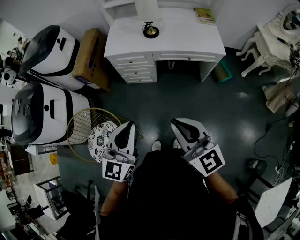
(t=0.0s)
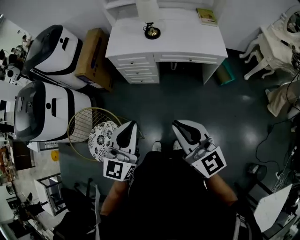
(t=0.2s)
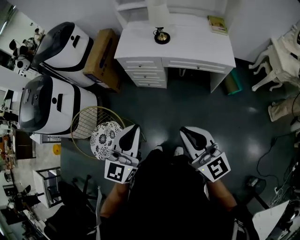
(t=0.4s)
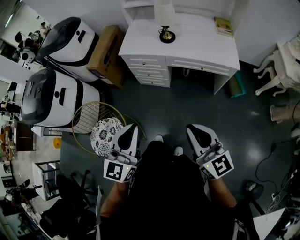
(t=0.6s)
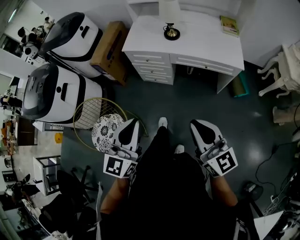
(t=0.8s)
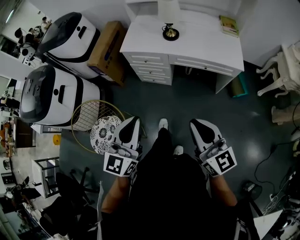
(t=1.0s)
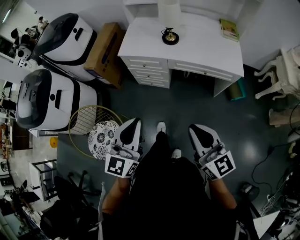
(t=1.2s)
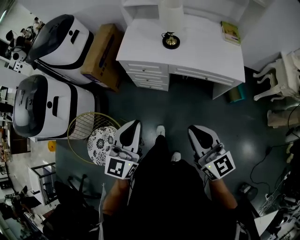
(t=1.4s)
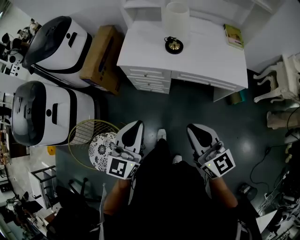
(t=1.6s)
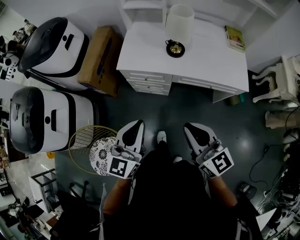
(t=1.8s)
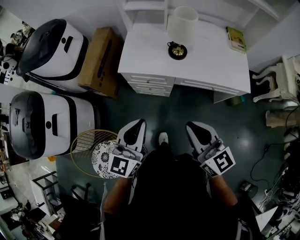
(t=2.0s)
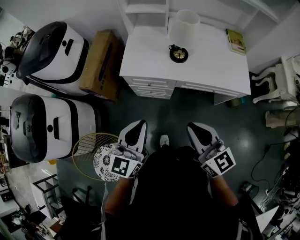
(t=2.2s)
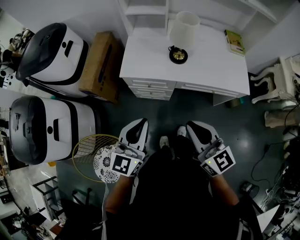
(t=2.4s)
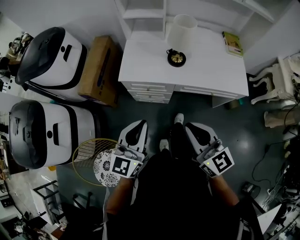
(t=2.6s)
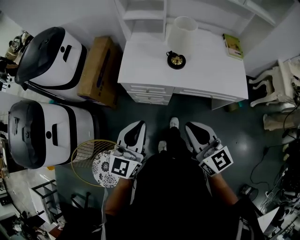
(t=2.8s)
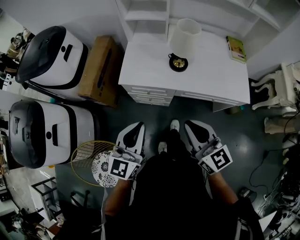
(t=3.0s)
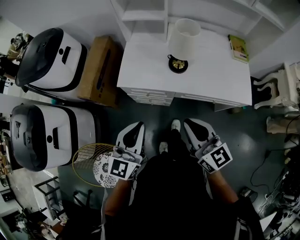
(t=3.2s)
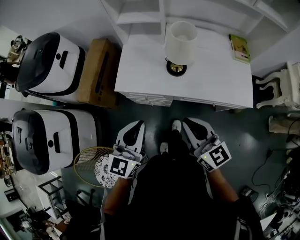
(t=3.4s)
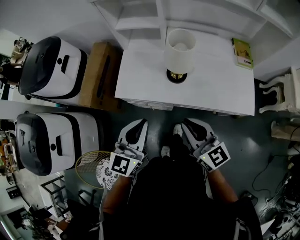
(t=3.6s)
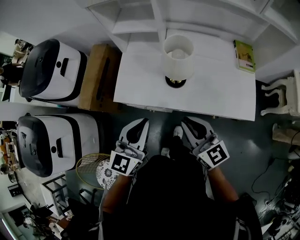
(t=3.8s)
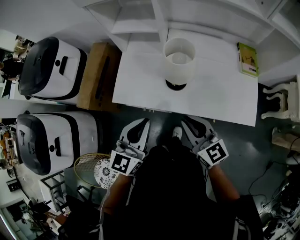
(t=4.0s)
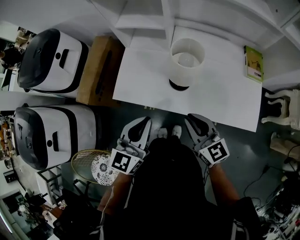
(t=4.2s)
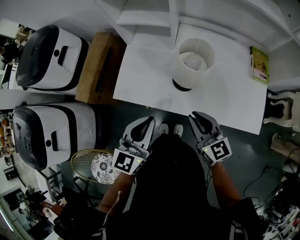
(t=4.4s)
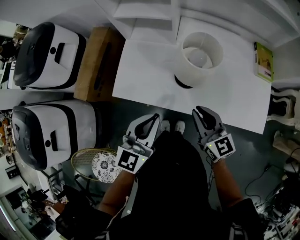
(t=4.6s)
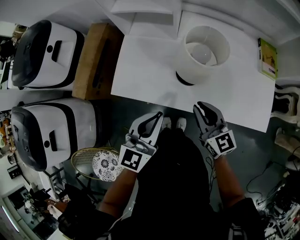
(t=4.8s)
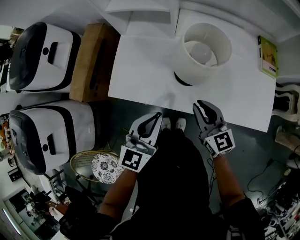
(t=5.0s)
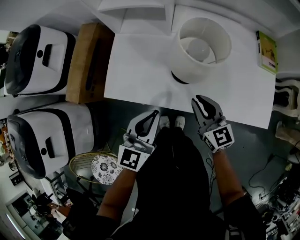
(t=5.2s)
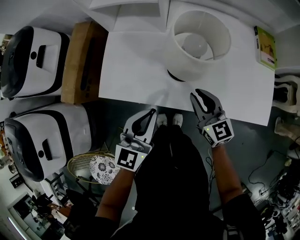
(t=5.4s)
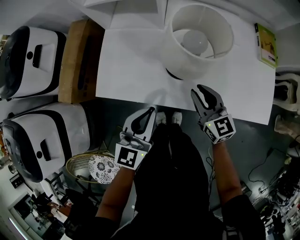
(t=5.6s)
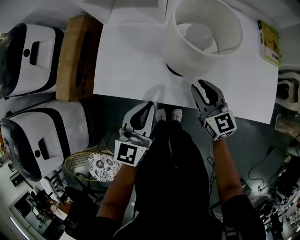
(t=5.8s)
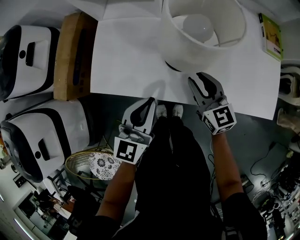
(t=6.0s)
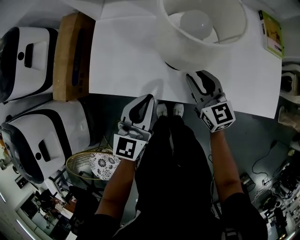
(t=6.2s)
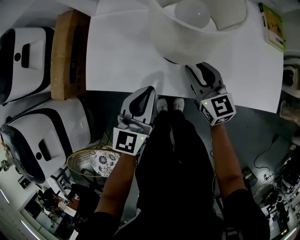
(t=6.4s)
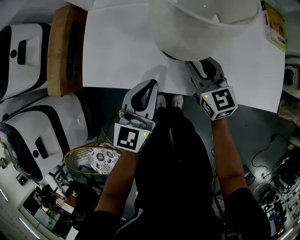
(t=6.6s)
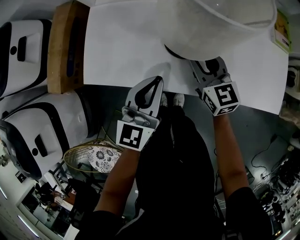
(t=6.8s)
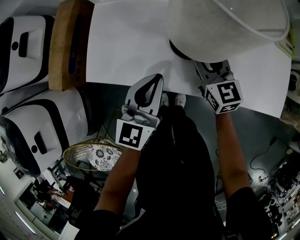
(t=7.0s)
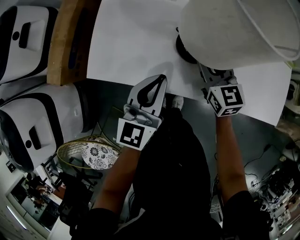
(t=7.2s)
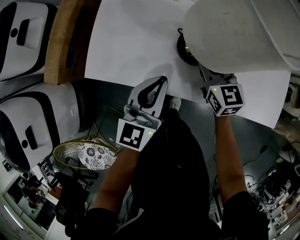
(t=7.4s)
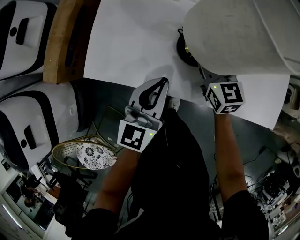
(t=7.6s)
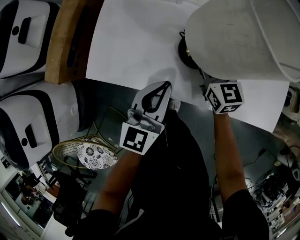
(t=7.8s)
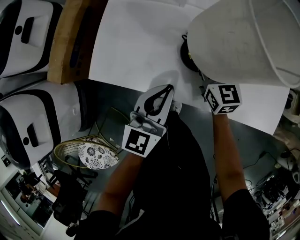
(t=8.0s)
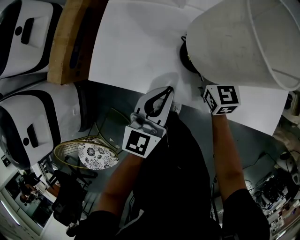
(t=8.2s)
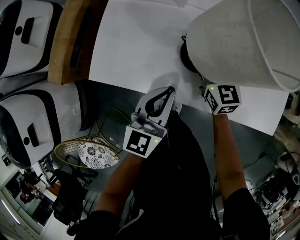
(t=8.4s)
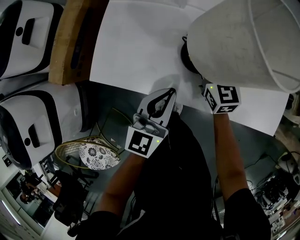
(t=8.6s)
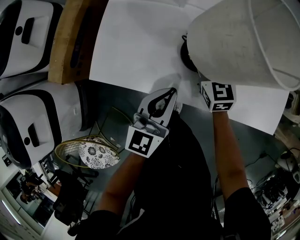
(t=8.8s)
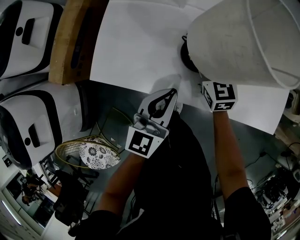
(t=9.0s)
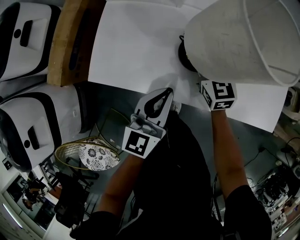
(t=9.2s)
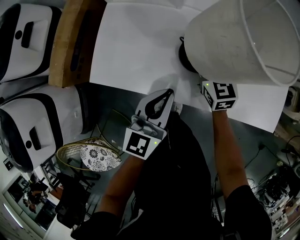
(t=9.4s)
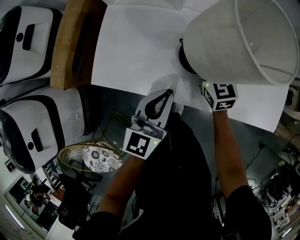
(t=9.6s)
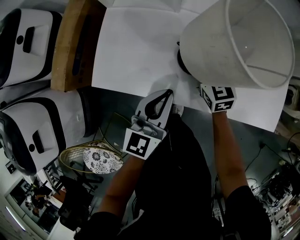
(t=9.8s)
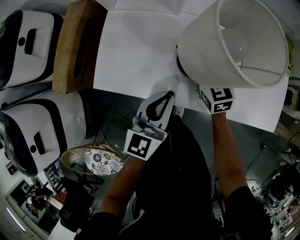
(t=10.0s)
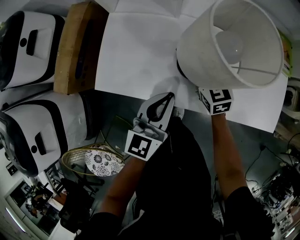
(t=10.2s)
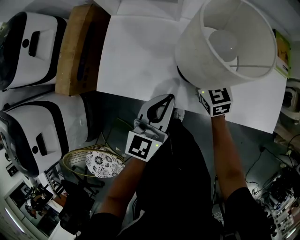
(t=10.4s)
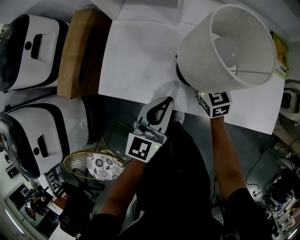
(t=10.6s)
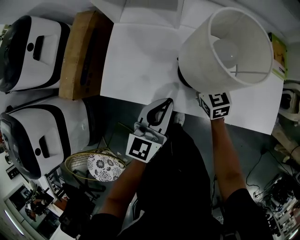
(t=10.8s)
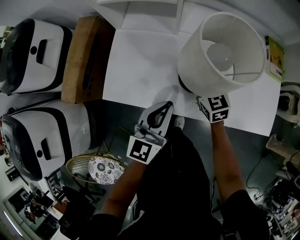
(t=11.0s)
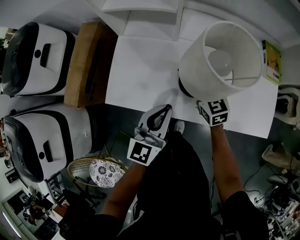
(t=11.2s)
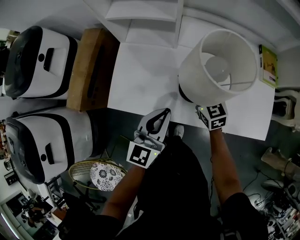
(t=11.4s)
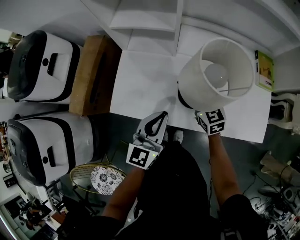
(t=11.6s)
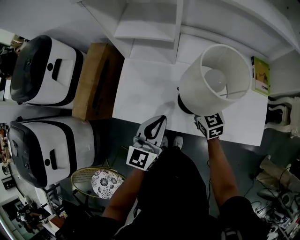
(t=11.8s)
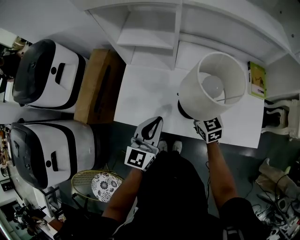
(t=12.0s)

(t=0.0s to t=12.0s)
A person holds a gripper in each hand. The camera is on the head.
t=0.0s - t=1.6s: Both grippers travel together forward, roughly 20 cm.
t=1.6s - t=3.0s: Both grippers move forward, roughly 15 cm.
t=3.0s - t=4.4s: The right gripper goes approximately 25 cm forward and downward; the left gripper is displaced forward and to the right by about 20 cm.
t=4.4s - t=6.0s: The left gripper moves downward, about 15 cm, while the right gripper goes about 15 cm downward and forward.
t=6.0s - t=7.6s: The left gripper ends up about 5 cm from where it was, while the right gripper travels forward by some 10 cm.
t=7.6s - t=10.4s: The grippers stay close to where they were, moving slightly.
t=10.4s - t=12.0s: The two grippers go approximately 10 cm upward.

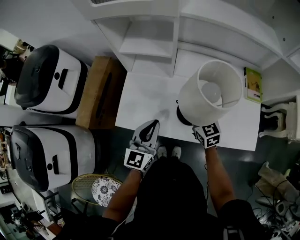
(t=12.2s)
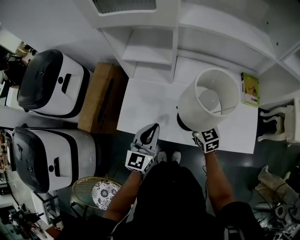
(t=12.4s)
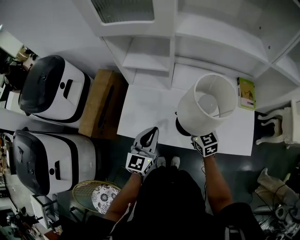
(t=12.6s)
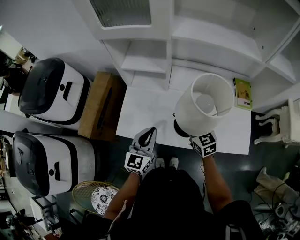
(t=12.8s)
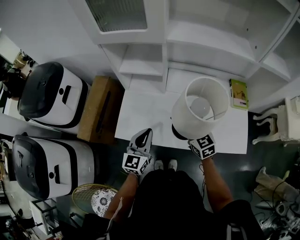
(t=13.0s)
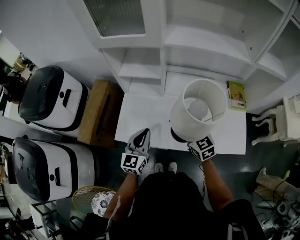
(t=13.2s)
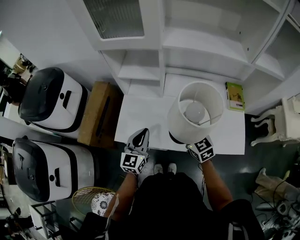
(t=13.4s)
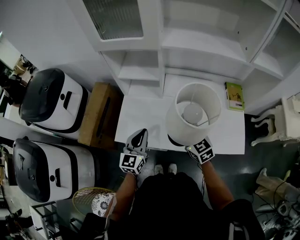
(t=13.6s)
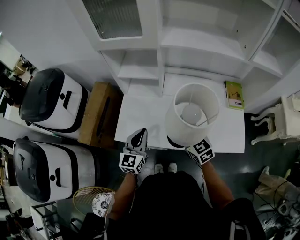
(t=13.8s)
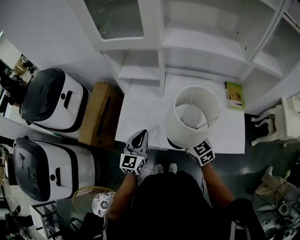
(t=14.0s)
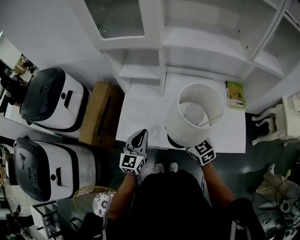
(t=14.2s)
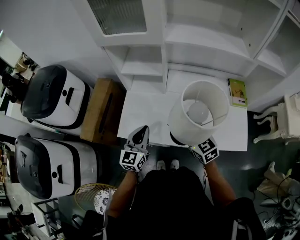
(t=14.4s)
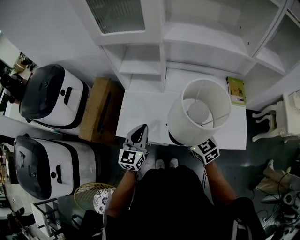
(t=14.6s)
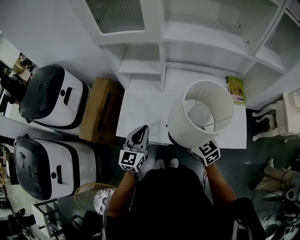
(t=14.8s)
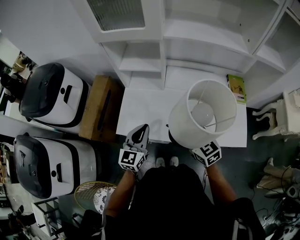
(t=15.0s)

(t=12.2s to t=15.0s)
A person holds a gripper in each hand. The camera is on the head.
t=12.2s - t=13.6s: The right gripper goes roughly 10 cm upward and backward.
t=13.6s - t=15.0s: The right gripper moves about 5 cm.

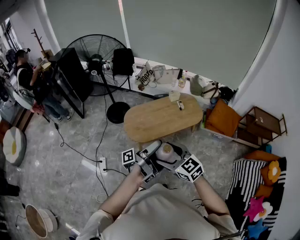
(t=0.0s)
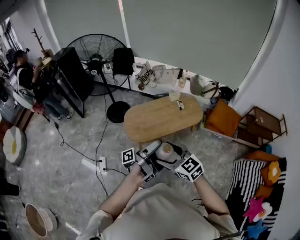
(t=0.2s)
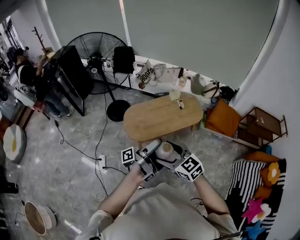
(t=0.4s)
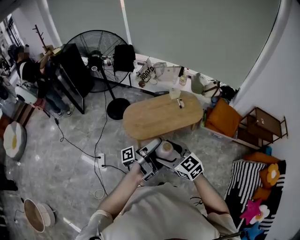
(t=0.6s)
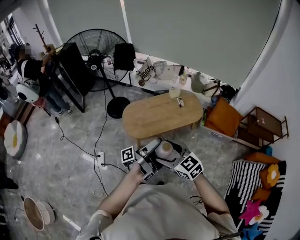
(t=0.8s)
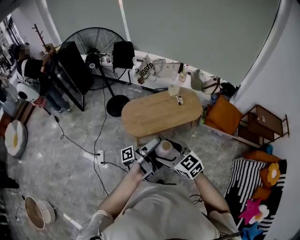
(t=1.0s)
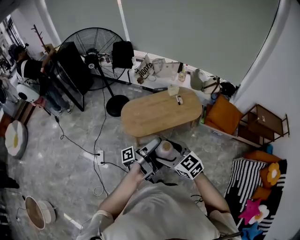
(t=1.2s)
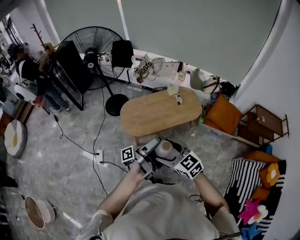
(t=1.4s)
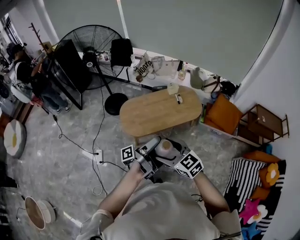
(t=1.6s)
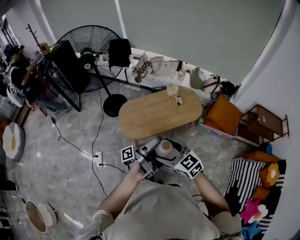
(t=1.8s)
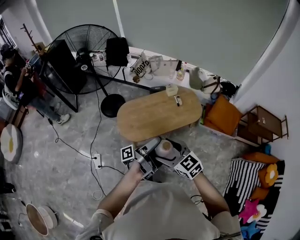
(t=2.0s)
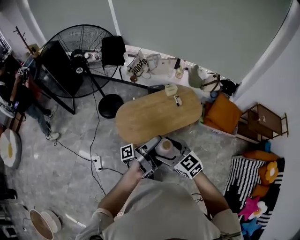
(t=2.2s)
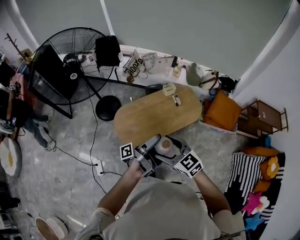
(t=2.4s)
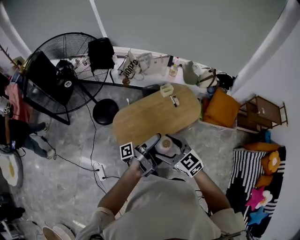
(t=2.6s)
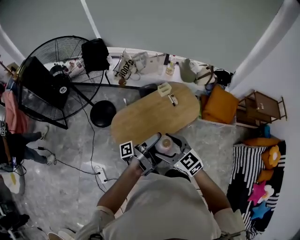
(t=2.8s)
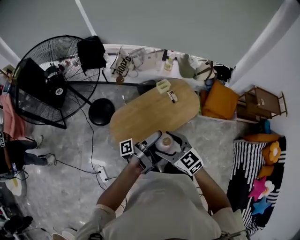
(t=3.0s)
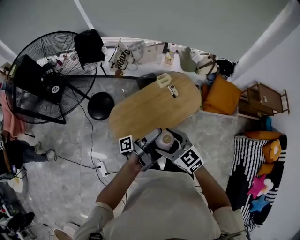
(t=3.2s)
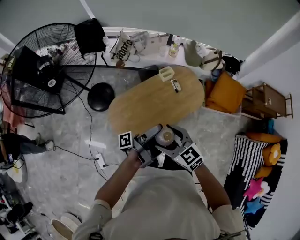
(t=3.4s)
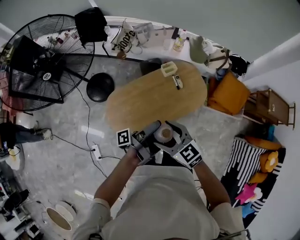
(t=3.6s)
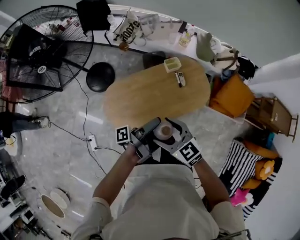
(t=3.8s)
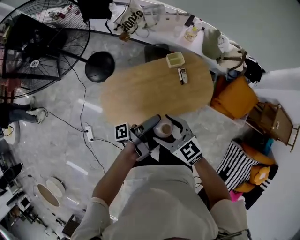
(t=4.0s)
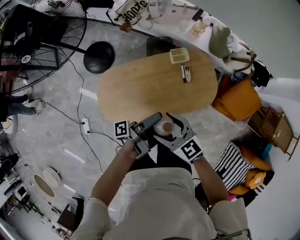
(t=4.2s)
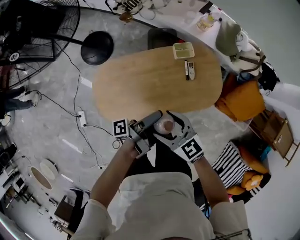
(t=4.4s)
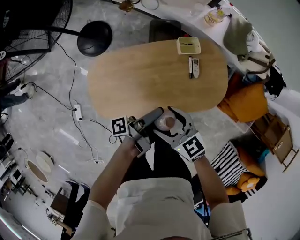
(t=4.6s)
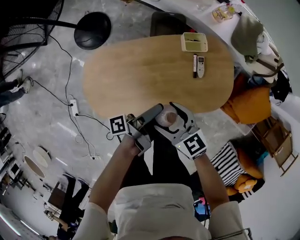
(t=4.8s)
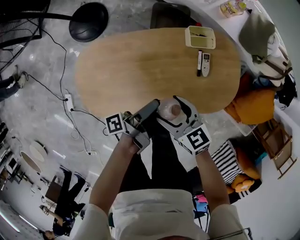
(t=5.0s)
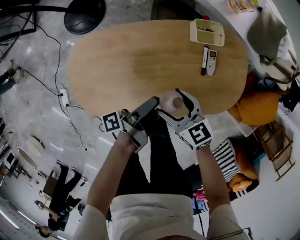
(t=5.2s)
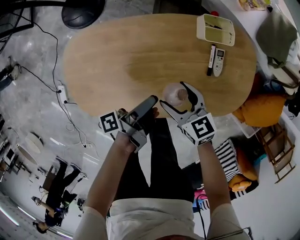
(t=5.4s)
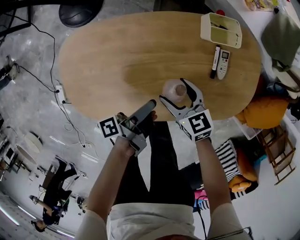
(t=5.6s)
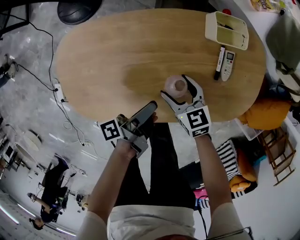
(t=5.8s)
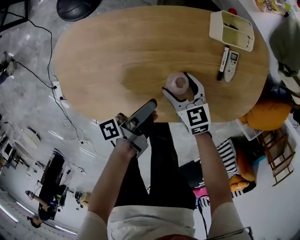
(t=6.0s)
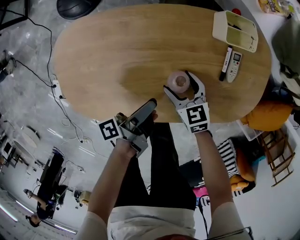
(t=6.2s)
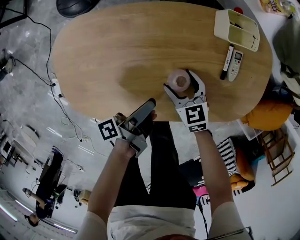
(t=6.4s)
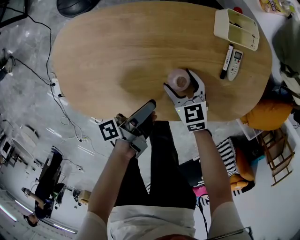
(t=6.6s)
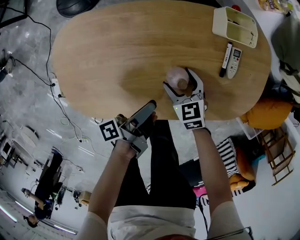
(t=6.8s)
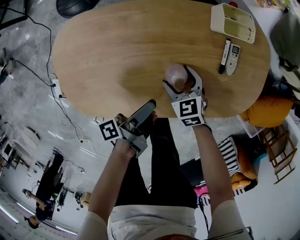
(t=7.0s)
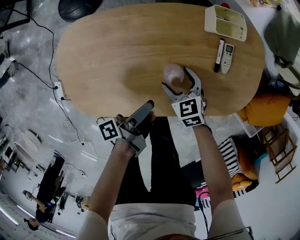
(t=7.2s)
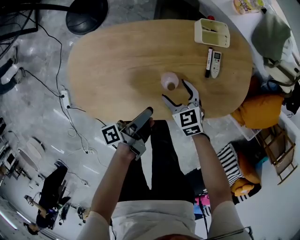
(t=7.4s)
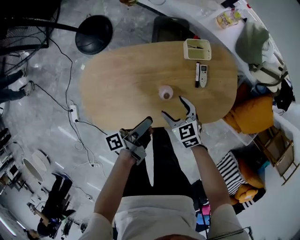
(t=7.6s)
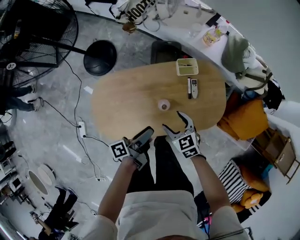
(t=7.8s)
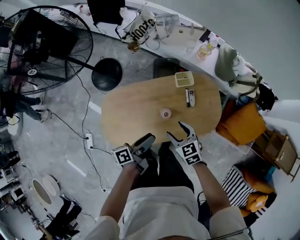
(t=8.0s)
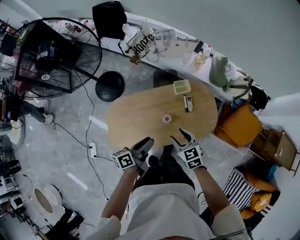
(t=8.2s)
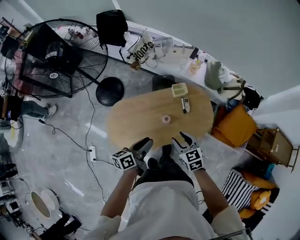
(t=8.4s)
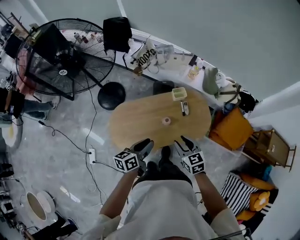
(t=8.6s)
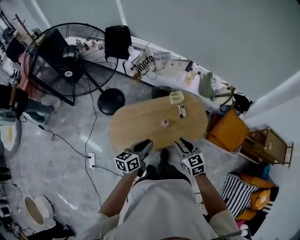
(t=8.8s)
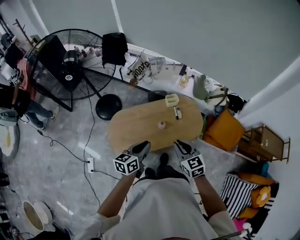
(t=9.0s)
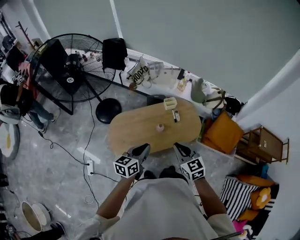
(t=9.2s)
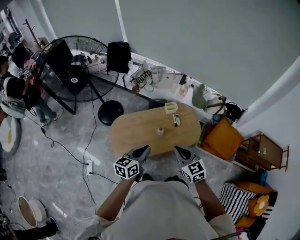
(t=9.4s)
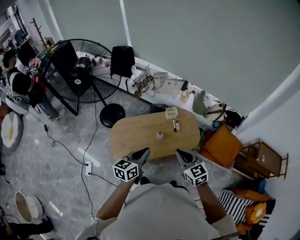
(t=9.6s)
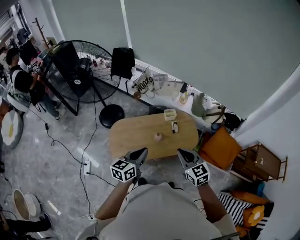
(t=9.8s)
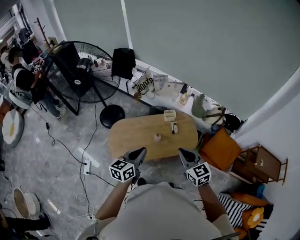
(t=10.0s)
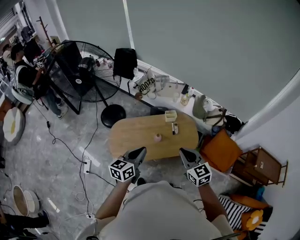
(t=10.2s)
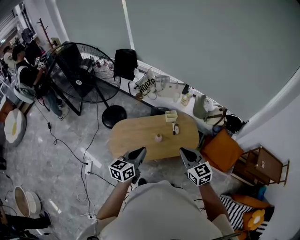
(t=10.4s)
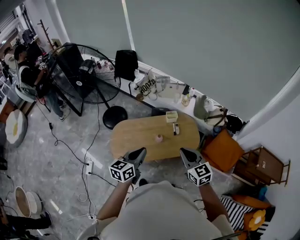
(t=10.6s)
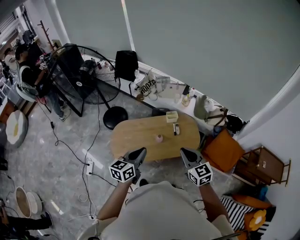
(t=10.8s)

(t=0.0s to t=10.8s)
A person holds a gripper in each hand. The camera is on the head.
t=0.0s - t=1.6s: The right gripper moves some 10 cm.
t=1.6s - t=3.0s: The right gripper shifts by about 30 cm.
t=3.0s - t=4.6s: The right gripper heads downward, covering approximately 30 cm, and rotates some 30 degrees.
t=4.6s - t=6.2s: The right gripper heads downward, covering some 40 cm.
t=6.2s - t=7.8s: The right gripper travels upward by approximately 30 cm.
t=7.8s - t=9.2s: The right gripper shifts roughly 40 cm upward, swivels about 30 degrees, and closes its fingers.
t=9.2s - t=10.8s: The right gripper ends up approximately 10 cm from where it was.
